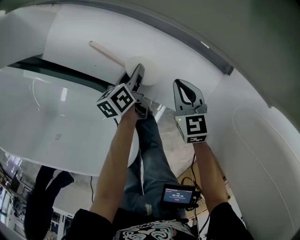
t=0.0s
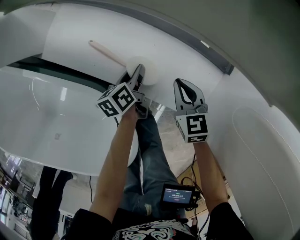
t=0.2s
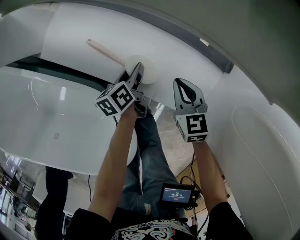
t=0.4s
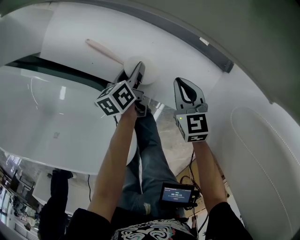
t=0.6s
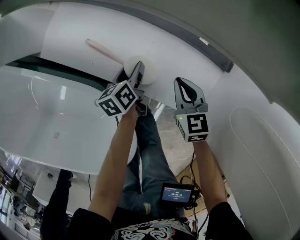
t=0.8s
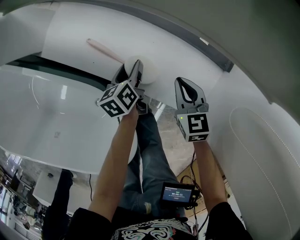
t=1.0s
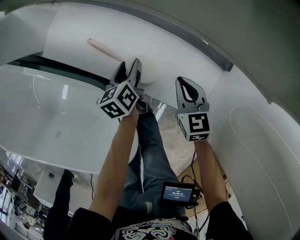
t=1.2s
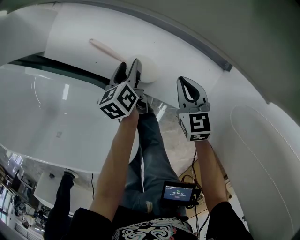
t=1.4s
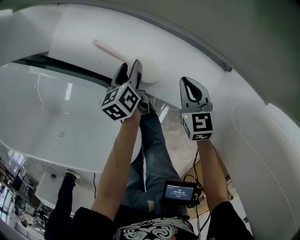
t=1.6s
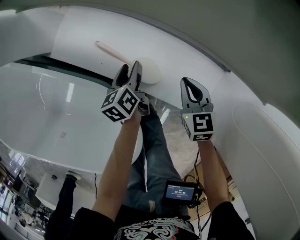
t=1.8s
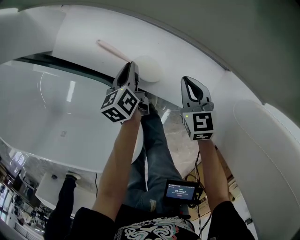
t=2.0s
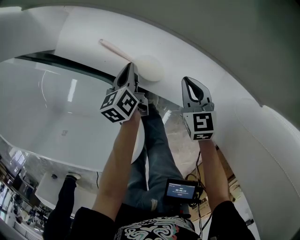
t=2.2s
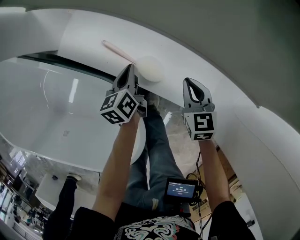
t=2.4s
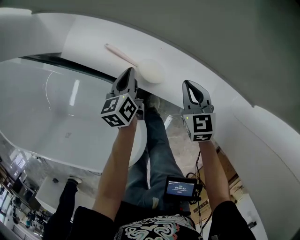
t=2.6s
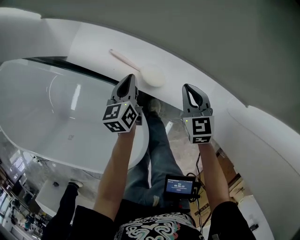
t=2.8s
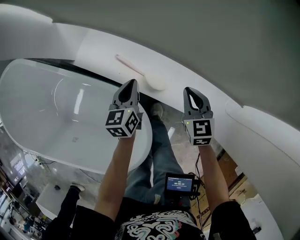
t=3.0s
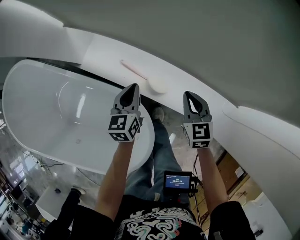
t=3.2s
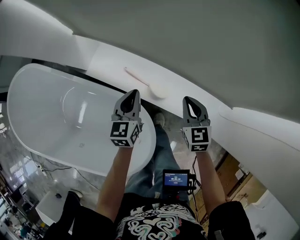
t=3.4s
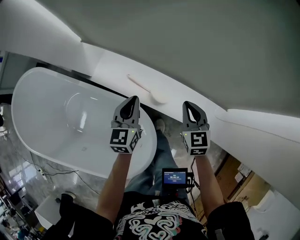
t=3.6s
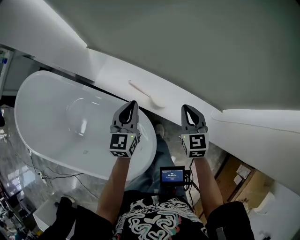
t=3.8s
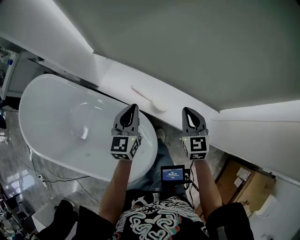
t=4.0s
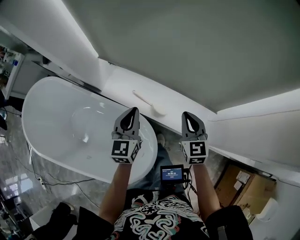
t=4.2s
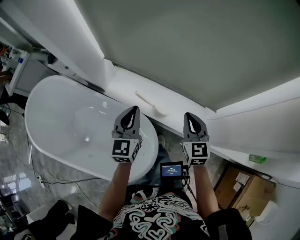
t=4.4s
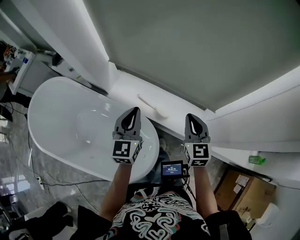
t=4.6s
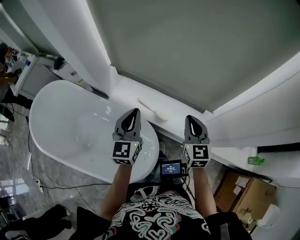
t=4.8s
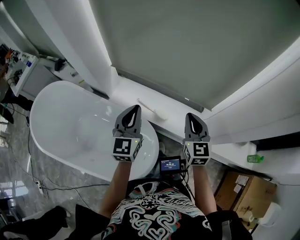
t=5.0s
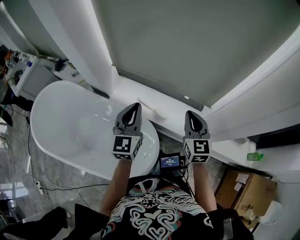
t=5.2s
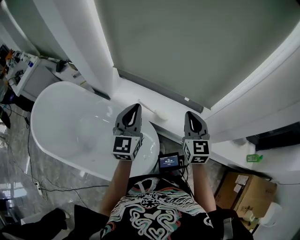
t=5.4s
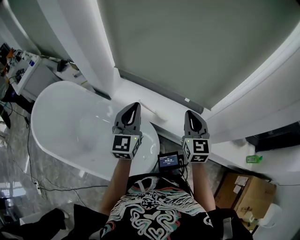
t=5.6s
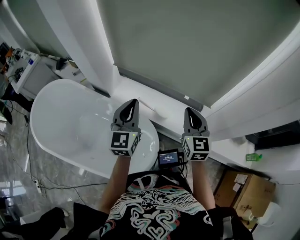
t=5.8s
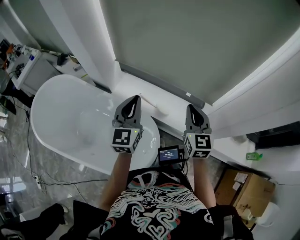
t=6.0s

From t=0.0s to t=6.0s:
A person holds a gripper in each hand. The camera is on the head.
From t=0.0s to t=1.6s: The grippers move only a little.
From t=1.6s to t=3.0s: The grippers both shift upward by roughly 15 cm. The left gripper rotates about 20 degrees, and closes its fingers.
From t=3.0s to t=4.4s: The grippers both shift upward by about 30 cm. The left gripper turns by roughly 30 degrees.
From t=4.4s to t=6.0s: The grippers both shift upward and backward by roughly 15 cm.

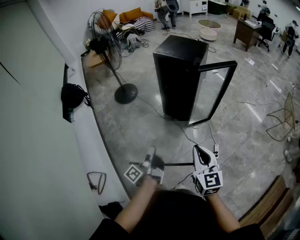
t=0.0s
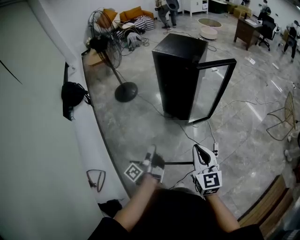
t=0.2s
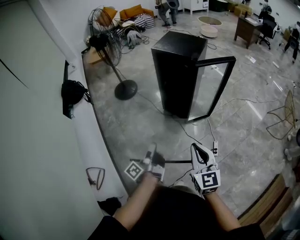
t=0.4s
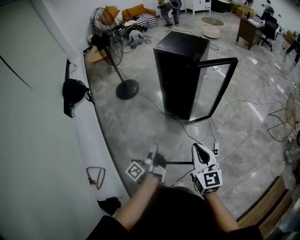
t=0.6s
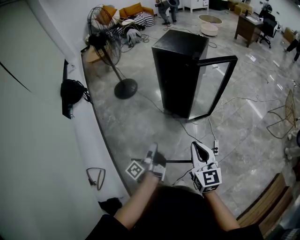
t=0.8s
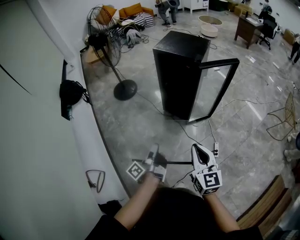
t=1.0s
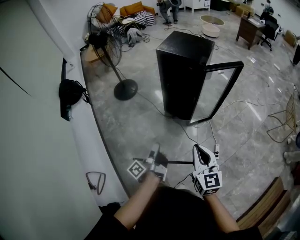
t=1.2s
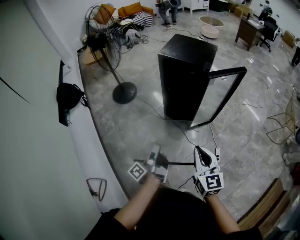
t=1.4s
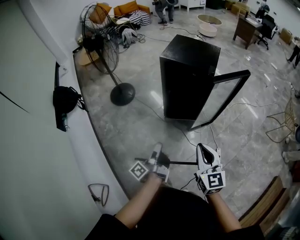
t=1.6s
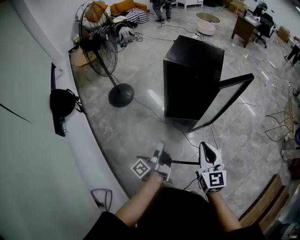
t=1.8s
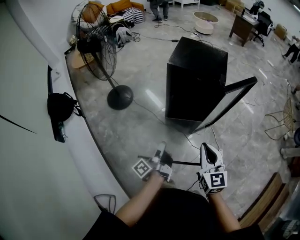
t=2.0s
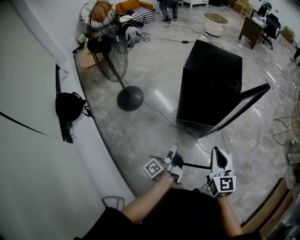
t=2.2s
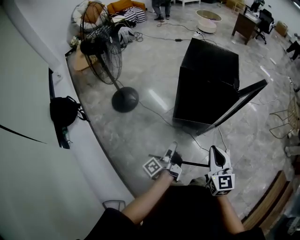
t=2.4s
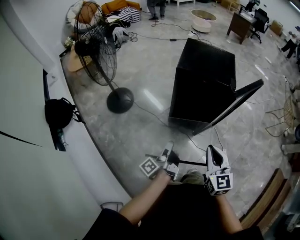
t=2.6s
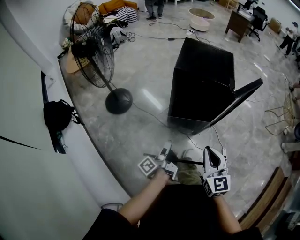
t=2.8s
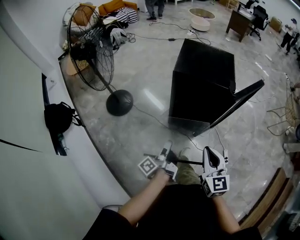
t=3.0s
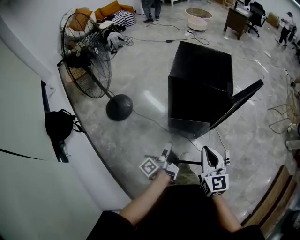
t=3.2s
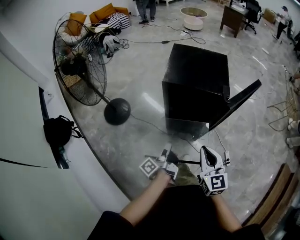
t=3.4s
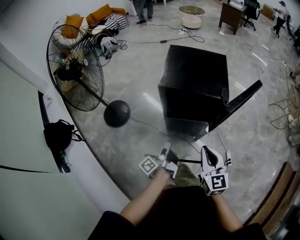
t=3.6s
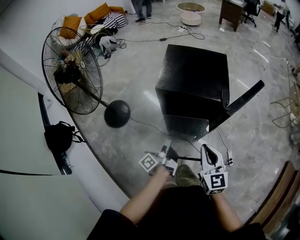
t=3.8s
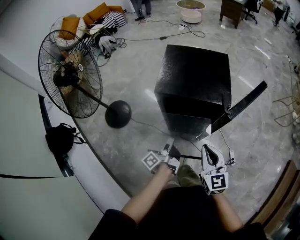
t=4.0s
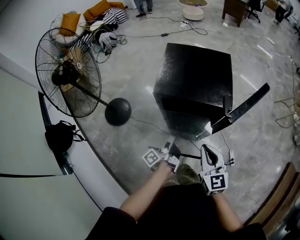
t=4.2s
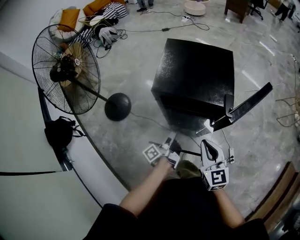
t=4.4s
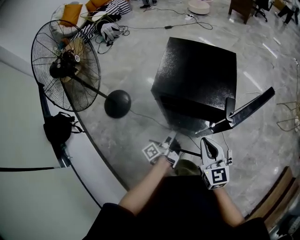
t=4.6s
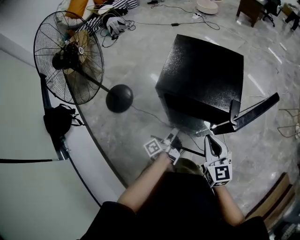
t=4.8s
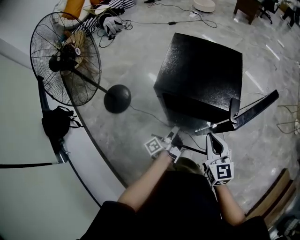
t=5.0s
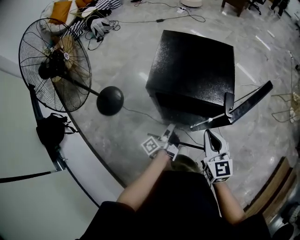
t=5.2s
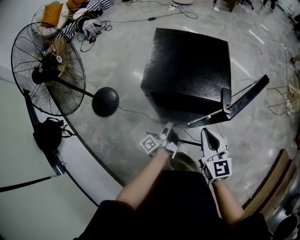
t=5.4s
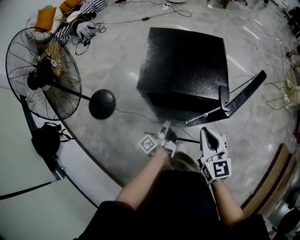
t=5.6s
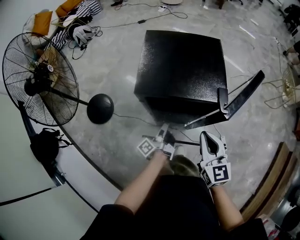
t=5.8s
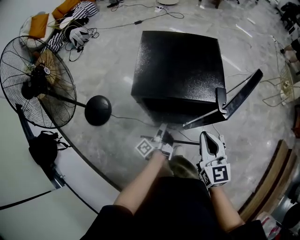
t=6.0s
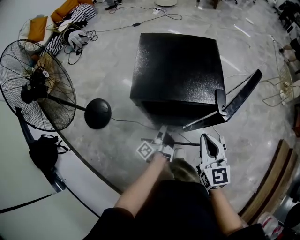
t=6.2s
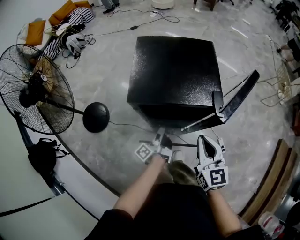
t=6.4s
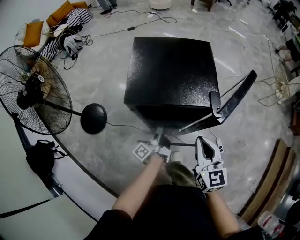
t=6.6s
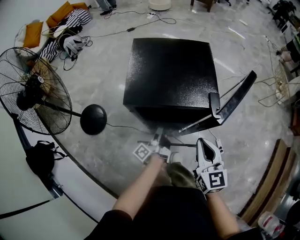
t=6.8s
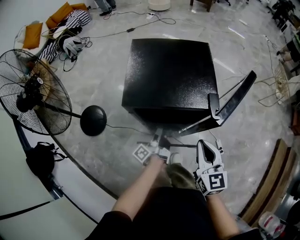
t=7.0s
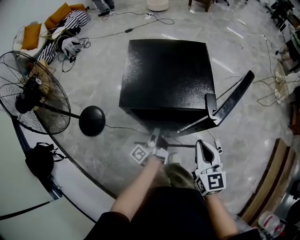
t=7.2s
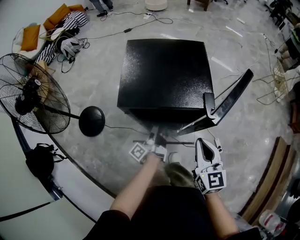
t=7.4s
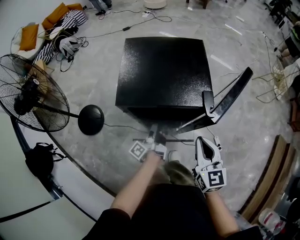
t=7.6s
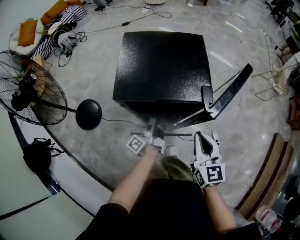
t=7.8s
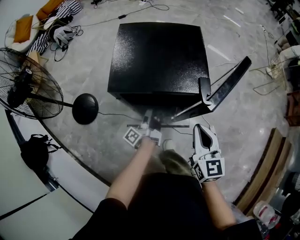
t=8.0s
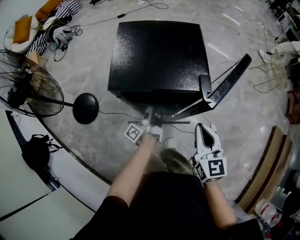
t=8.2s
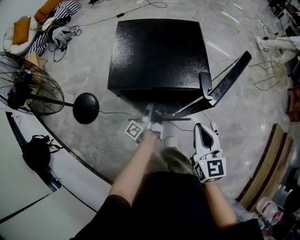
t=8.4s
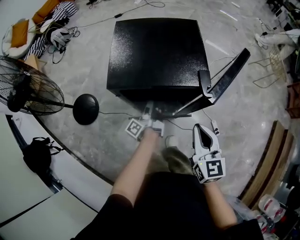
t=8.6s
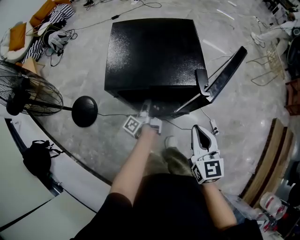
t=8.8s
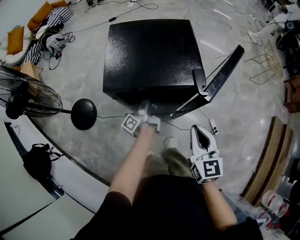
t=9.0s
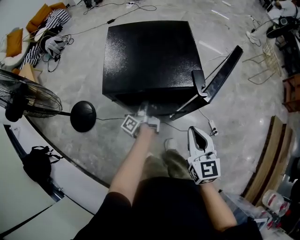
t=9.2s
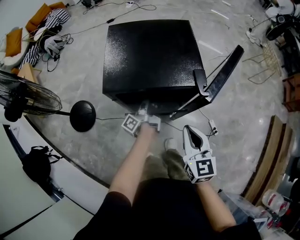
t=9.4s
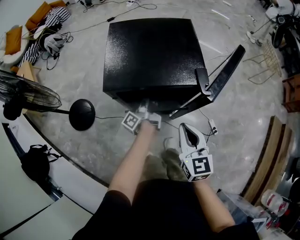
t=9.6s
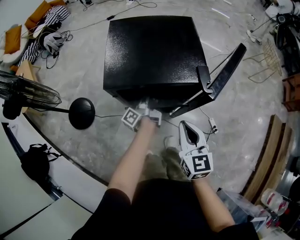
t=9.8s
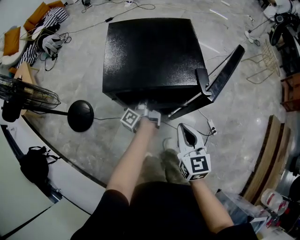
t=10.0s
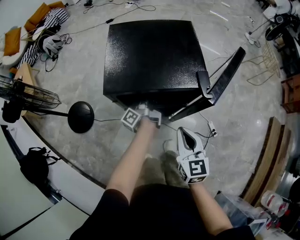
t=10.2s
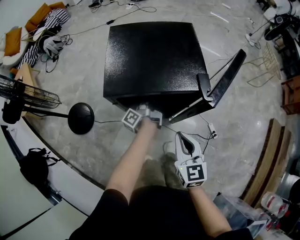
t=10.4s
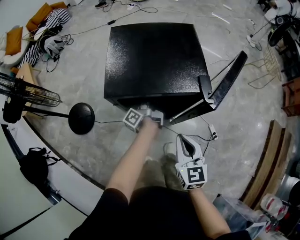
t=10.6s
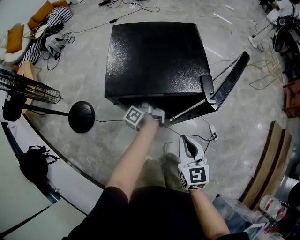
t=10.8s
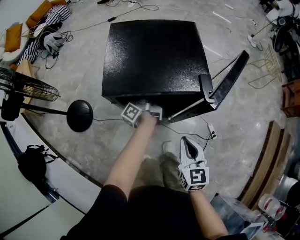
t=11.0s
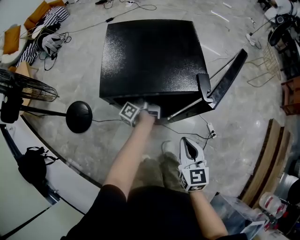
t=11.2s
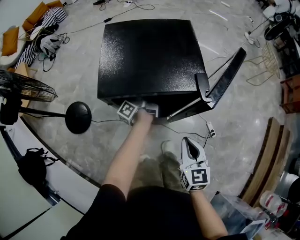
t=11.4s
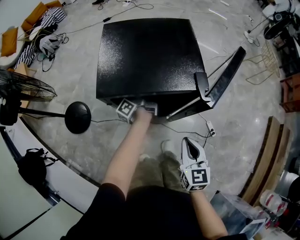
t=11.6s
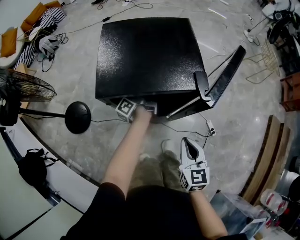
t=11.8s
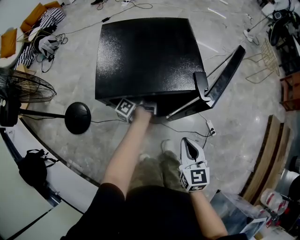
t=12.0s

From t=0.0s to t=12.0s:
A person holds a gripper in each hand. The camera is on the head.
From t=0.0s to t=1.6s: The right gripper ends up approximately 20 cm from where it was.
From t=1.6s to t=3.0s: The right gripper ends up about 25 cm from where it was.
From t=3.0s to t=4.4s: The right gripper moves about 25 cm.
From t=4.4s to t=6.0s: The right gripper changes place by roughly 5 cm.
From t=9.0s to t=10.4s: The right gripper shifts by some 10 cm.
From t=10.4s to t=12.0s: The right gripper ends up about 5 cm from where it was.

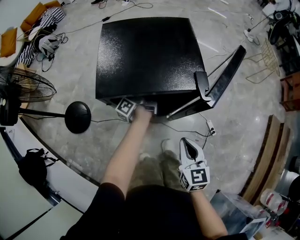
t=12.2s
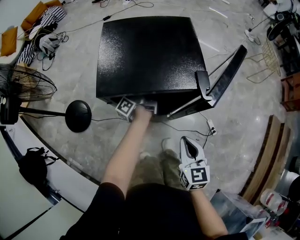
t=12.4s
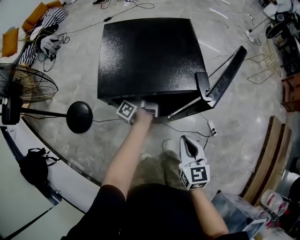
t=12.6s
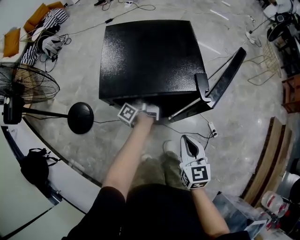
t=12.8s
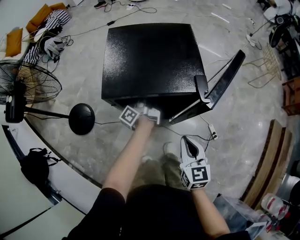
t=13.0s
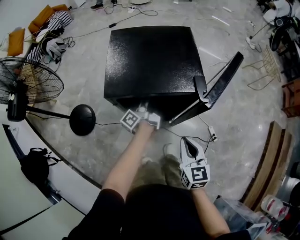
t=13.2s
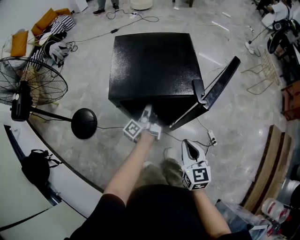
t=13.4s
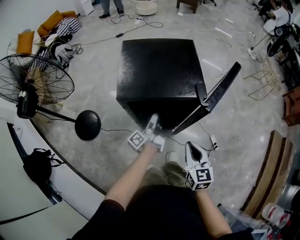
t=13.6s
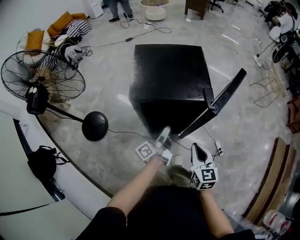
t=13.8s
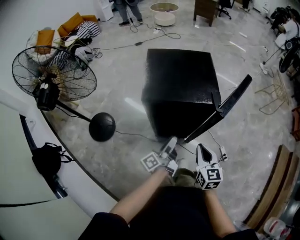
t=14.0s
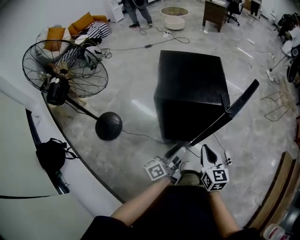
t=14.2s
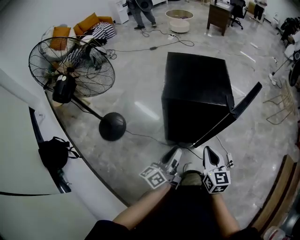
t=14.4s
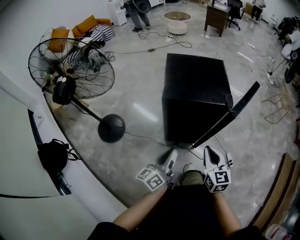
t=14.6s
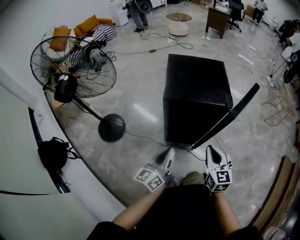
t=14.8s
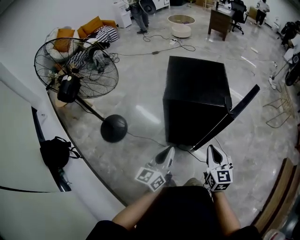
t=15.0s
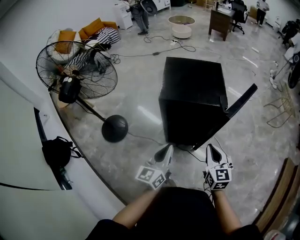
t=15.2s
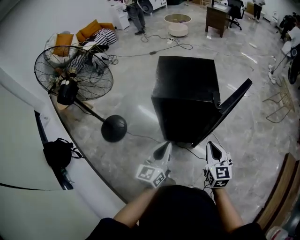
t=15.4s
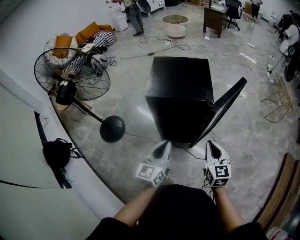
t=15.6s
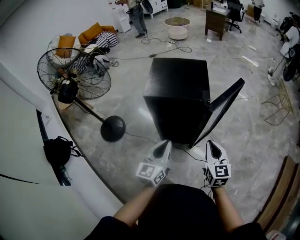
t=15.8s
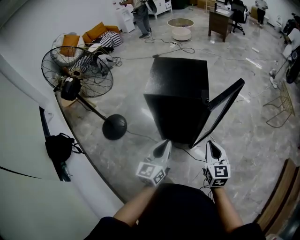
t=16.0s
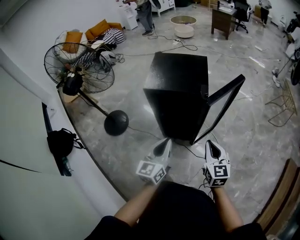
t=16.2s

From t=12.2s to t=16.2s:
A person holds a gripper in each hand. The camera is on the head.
From t=12.2s to t=13.6s: The right gripper is displaced upward by some 5 cm.
From t=13.6s to t=14.8s: The right gripper shifts by some 10 cm.
From t=14.8s to t=16.2s: The right gripper shifts by some 20 cm.

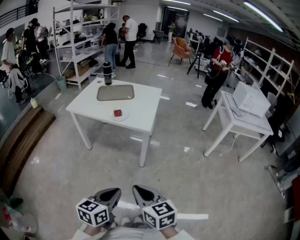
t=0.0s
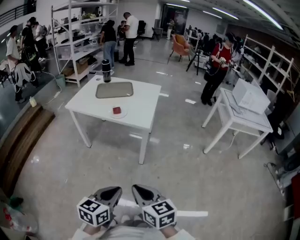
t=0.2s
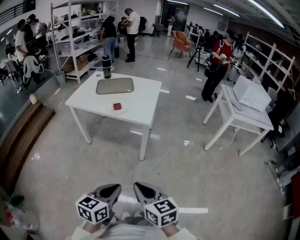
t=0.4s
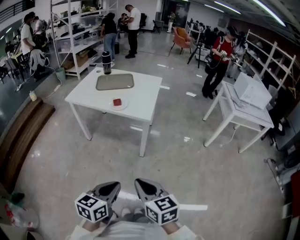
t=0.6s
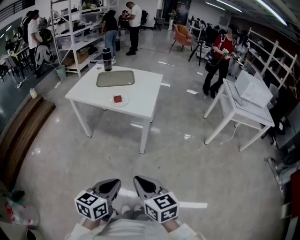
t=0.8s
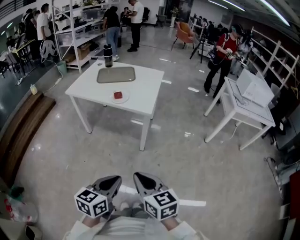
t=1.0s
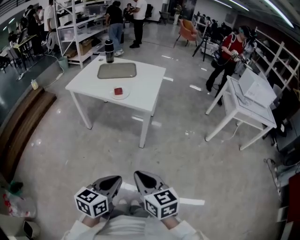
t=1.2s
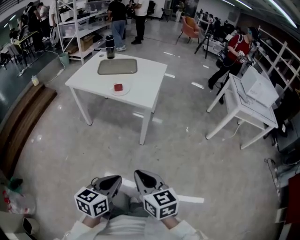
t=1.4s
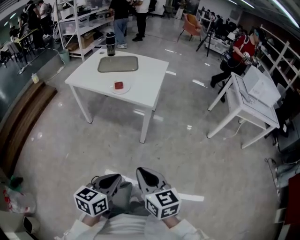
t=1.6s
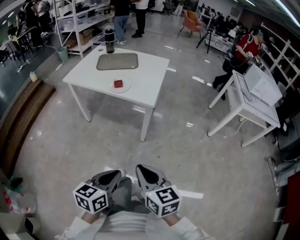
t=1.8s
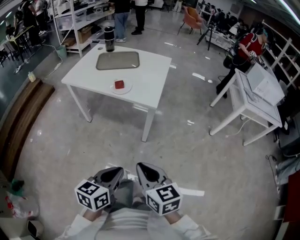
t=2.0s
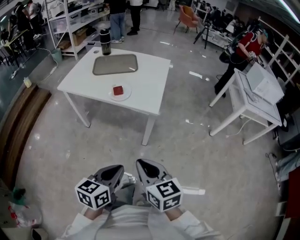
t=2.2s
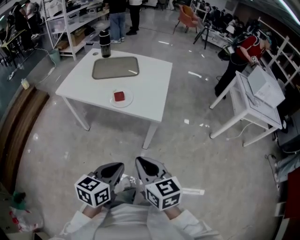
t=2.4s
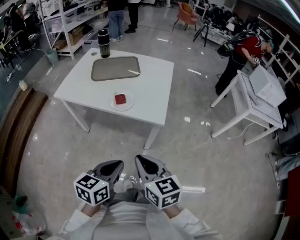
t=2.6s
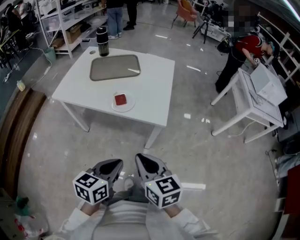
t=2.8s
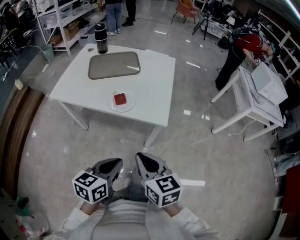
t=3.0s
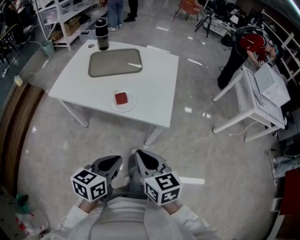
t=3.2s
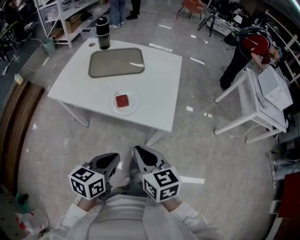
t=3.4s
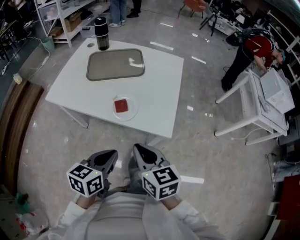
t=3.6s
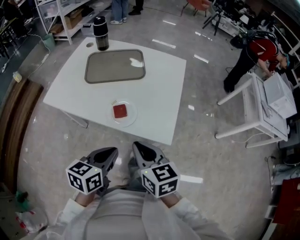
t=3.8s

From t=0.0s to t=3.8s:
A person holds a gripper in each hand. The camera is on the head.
From t=0.0s to t=1.2s: The grippers stay close to where they were, moving slightly.
From t=1.2s to t=2.6s: Both grippers travel together forward, approximately 25 cm.
From t=2.6s to t=3.8s: The grippers both shift forward by approximately 20 cm.
